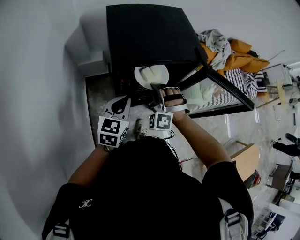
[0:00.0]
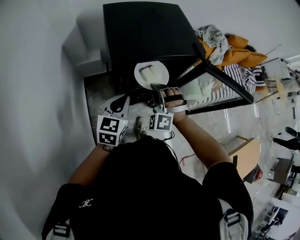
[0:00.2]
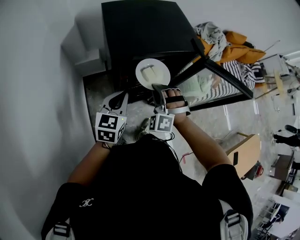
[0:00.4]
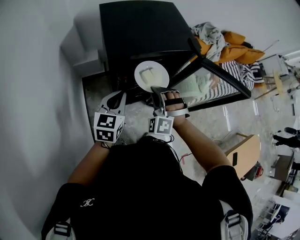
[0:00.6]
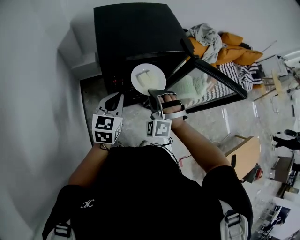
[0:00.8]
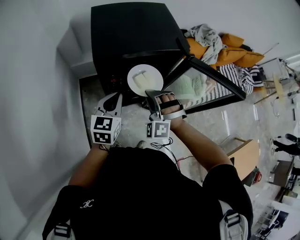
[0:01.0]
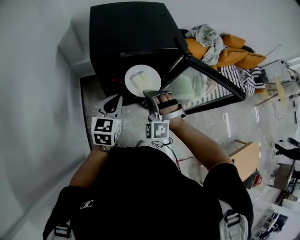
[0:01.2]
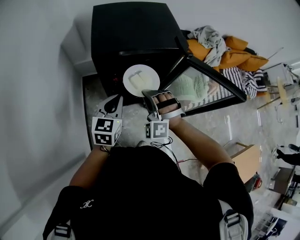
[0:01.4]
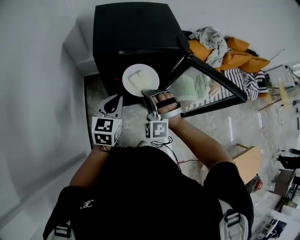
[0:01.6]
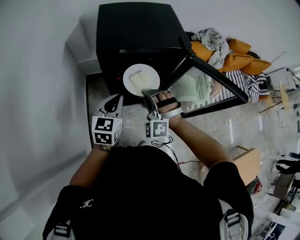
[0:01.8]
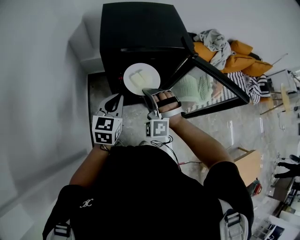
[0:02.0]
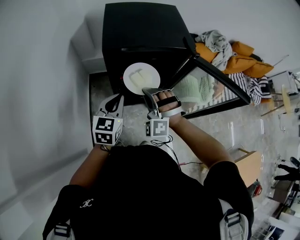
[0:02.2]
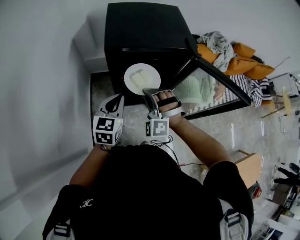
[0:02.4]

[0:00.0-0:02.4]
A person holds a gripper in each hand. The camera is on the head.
0:00.0 to 0:01.2: The right gripper is displaced backward and to the right by approximately 10 cm; the left gripper is displaced to the right by some 5 cm.
0:01.2 to 0:02.4: There are only small adjustments of the grippers.

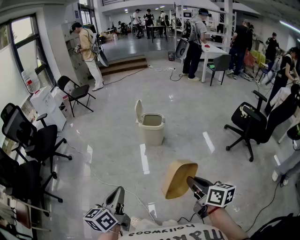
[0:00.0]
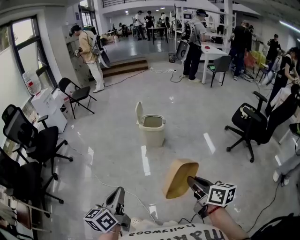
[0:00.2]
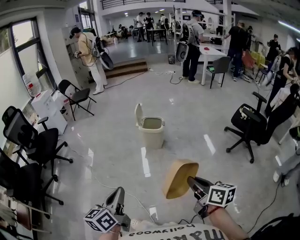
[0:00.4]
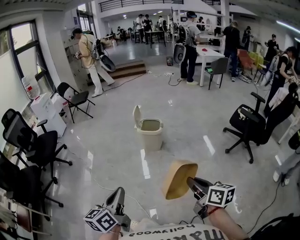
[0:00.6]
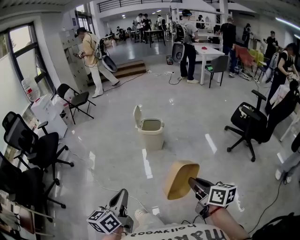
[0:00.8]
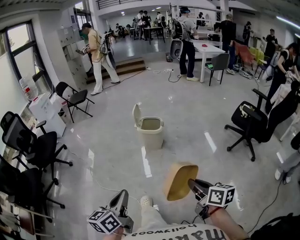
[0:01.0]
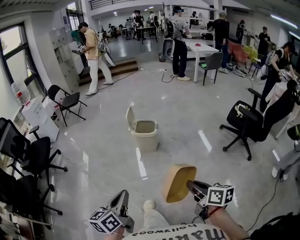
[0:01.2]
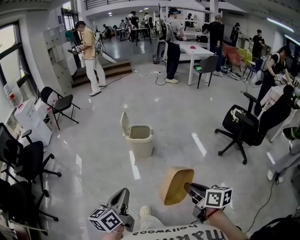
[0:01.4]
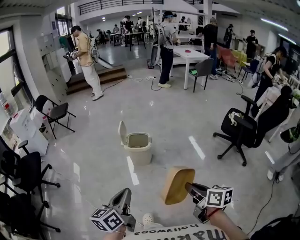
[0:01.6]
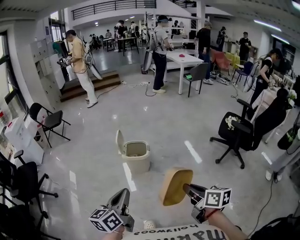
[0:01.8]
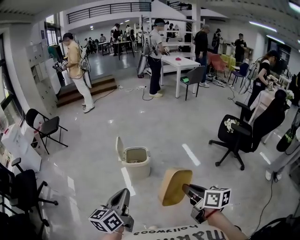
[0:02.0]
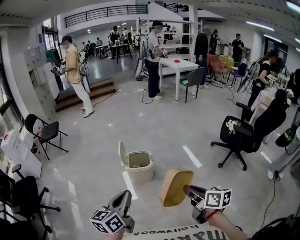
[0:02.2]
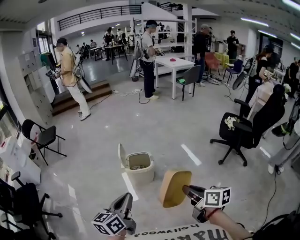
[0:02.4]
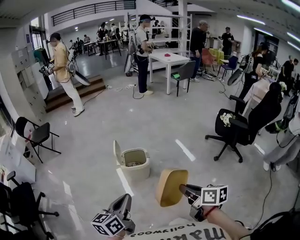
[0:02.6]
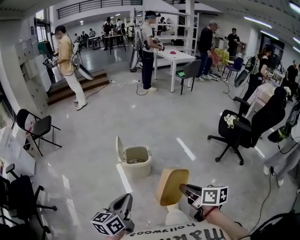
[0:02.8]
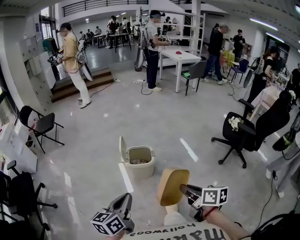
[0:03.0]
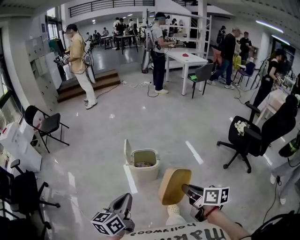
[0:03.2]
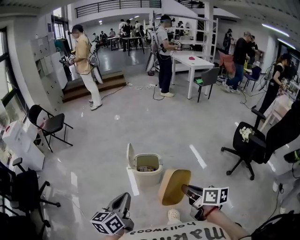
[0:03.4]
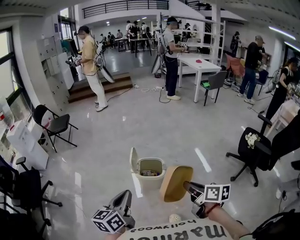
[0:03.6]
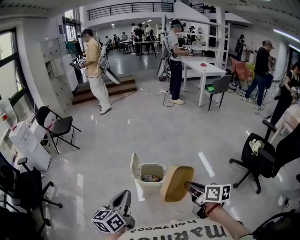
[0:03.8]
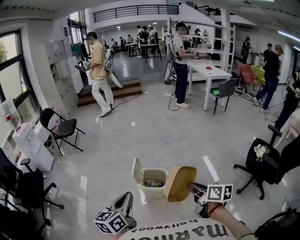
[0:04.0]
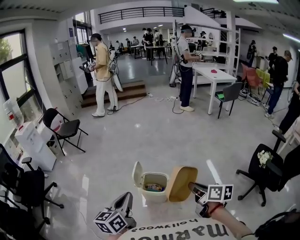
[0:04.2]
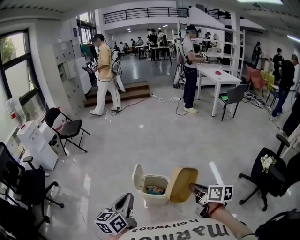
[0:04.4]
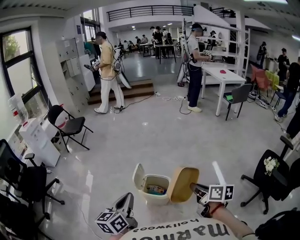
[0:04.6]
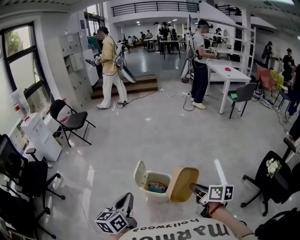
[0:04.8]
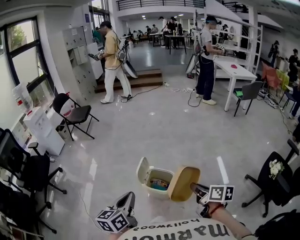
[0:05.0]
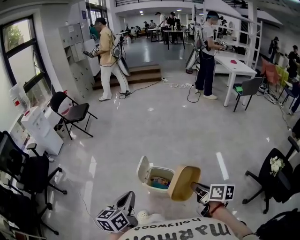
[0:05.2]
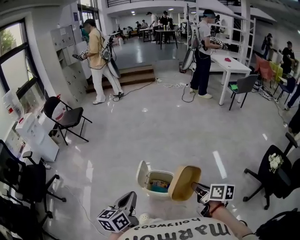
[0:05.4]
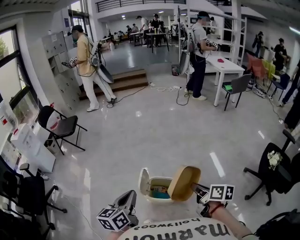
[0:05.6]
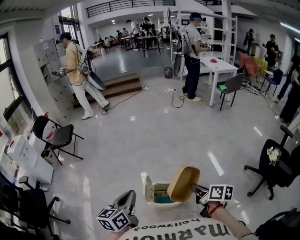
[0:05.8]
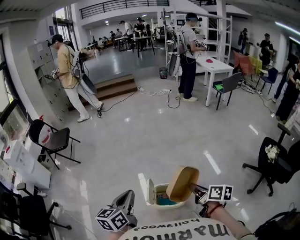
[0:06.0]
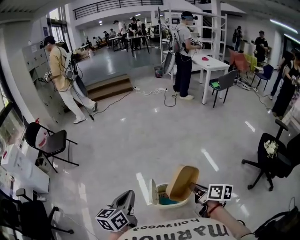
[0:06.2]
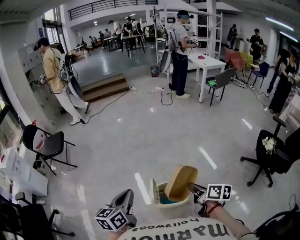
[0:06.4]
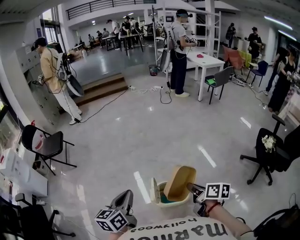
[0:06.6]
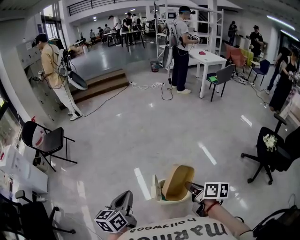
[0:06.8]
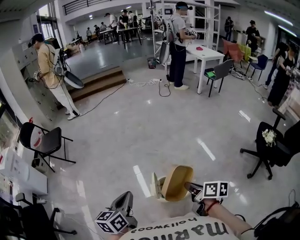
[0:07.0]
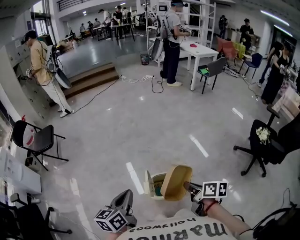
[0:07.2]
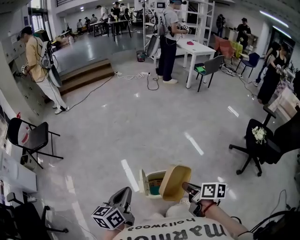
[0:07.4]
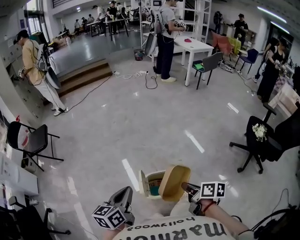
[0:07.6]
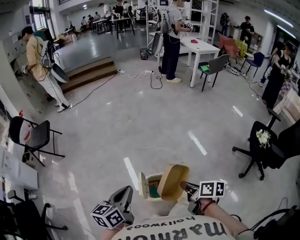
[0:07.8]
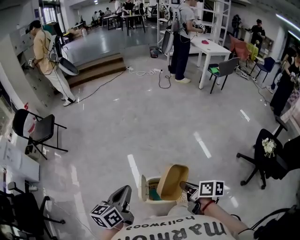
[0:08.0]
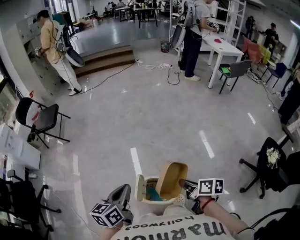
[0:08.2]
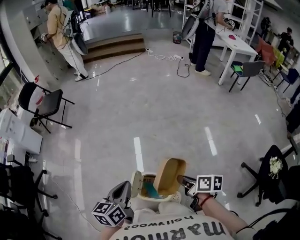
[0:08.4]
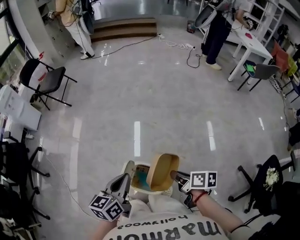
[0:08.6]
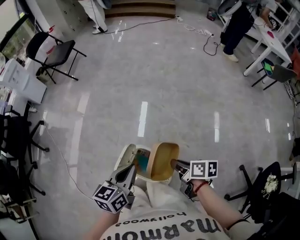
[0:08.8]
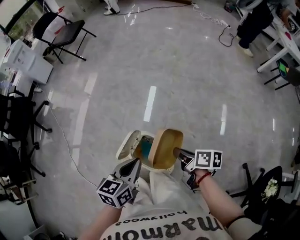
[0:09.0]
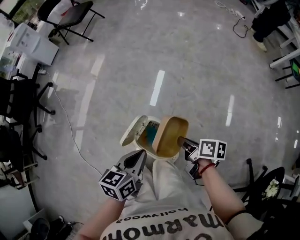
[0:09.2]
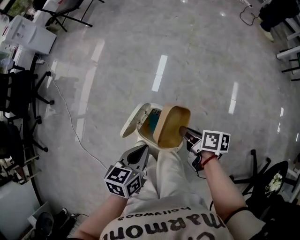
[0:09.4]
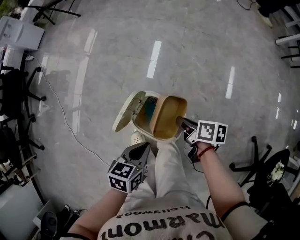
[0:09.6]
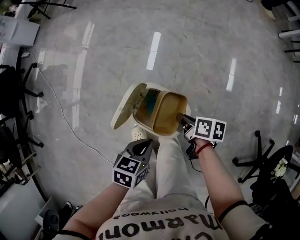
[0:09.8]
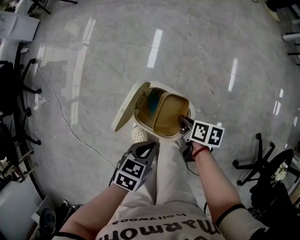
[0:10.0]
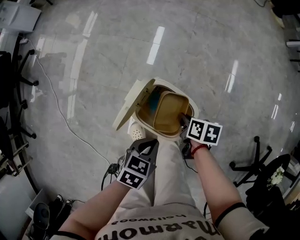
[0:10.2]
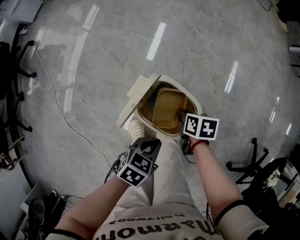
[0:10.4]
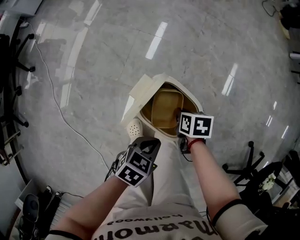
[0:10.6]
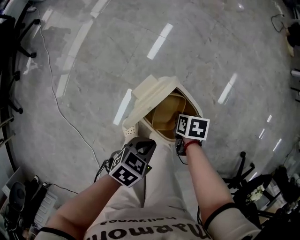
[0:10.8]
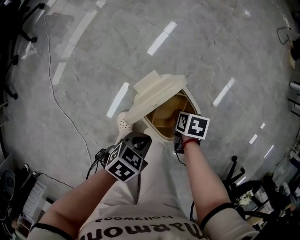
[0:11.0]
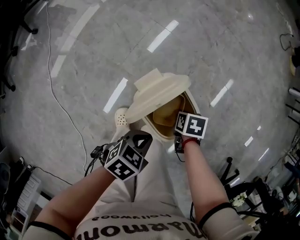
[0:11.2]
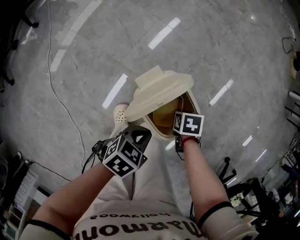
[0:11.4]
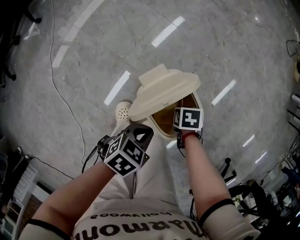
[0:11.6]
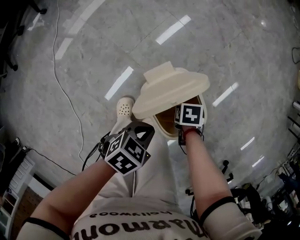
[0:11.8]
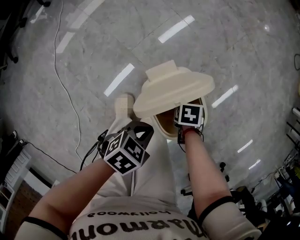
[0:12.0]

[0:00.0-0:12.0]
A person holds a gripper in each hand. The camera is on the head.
0:00.0 to 0:01.6: Both grippers move forward, some 15 cm.
0:01.6 to 0:03.0: The grippers both shift forward and to the left by roughly 20 cm.
0:03.0 to 0:04.4: The right gripper heads forward and to the right, covering about 30 cm; the left gripper travels forward by approximately 20 cm, and swivels about 20 degrees.
0:04.4 to 0:06.0: The left gripper heads forward, covering roughly 20 cm. Meanwhile the right gripper is displaced forward and to the left by about 20 cm.
0:06.0 to 0:07.6: The two grippers go some 5 cm downward. The left gripper goes to the left and returns, some 5 cm each way.
0:07.6 to 0:09.0: The right gripper shifts by some 25 cm, and rotates about 40 degrees; the left gripper shifts by some 20 cm, and rotates about 30 degrees.
0:09.0 to 0:10.4: Both grippers move downward, about 25 cm. The left gripper rotates approximately 40 degrees. The right gripper turns by about 30 degrees.
0:10.4 to 0:12.0: The right gripper is displaced downward by about 10 cm, and rotates approximately 40 degrees.

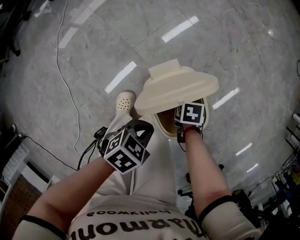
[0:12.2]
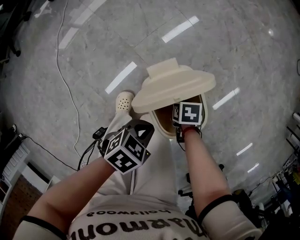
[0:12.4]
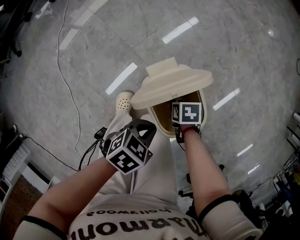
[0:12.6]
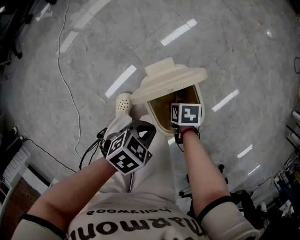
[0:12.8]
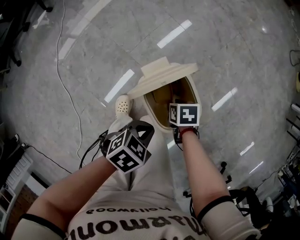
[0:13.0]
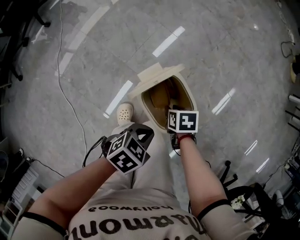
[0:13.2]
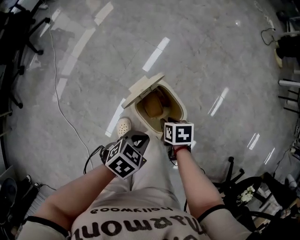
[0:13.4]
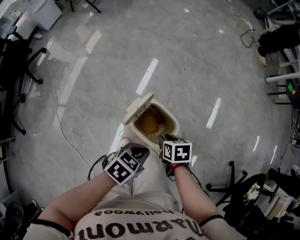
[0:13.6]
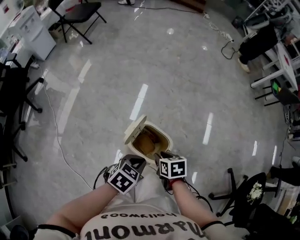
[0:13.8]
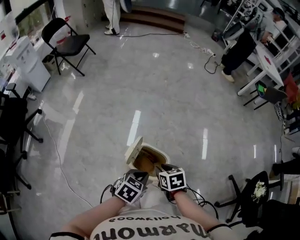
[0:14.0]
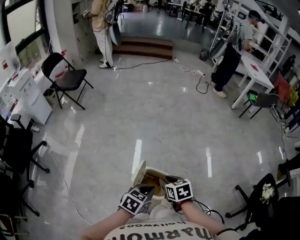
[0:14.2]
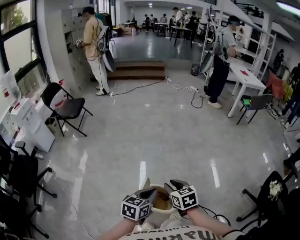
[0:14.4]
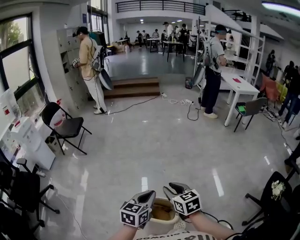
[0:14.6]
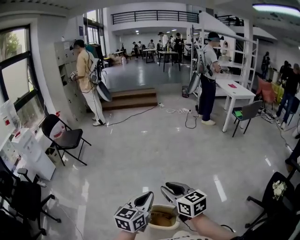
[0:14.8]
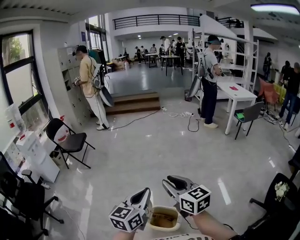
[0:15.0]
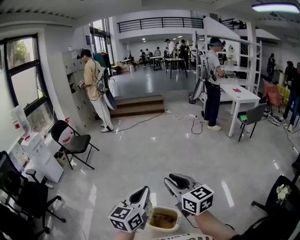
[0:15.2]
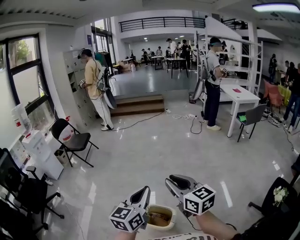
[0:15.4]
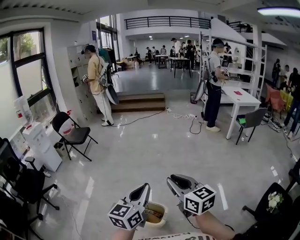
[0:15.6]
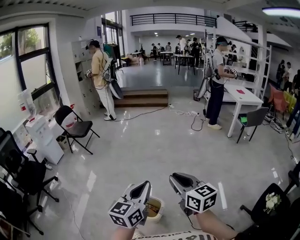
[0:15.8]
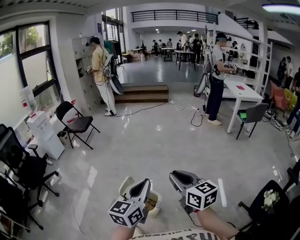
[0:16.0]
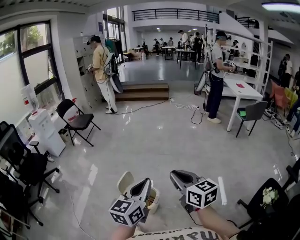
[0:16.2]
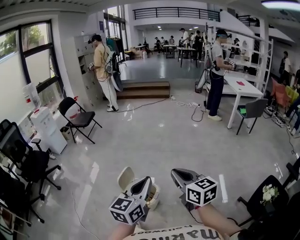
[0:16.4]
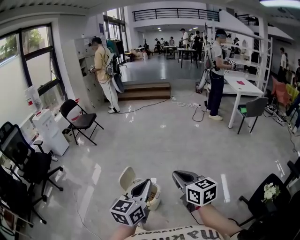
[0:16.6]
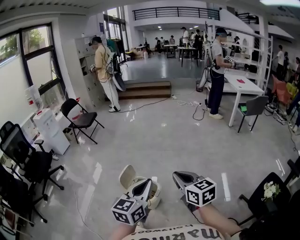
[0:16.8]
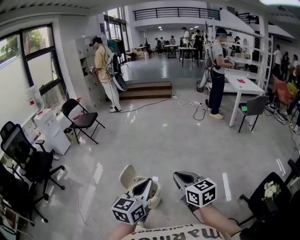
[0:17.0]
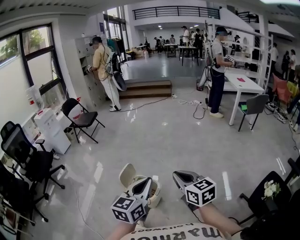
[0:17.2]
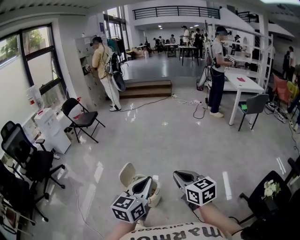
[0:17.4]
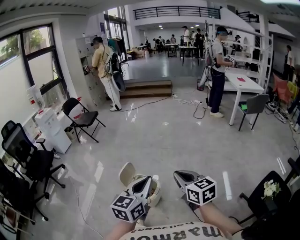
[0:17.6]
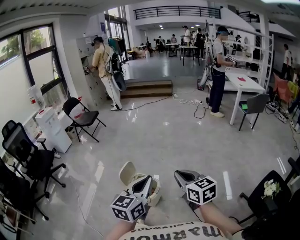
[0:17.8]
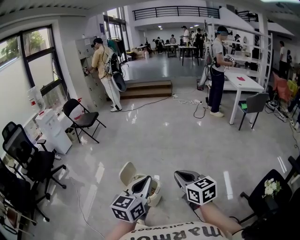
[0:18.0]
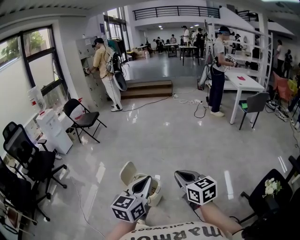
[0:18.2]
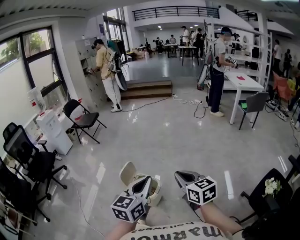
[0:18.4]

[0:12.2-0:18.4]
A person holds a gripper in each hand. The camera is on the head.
0:12.2 to 0:13.8: The grippers both shift upward by roughly 25 cm. The right gripper changes its angle by approximately 30 degrees, and opens up. Meanwhile the left gripper turns by some 30 degrees.
0:13.8 to 0:15.4: Both grippers move upward, approximately 40 cm. The right gripper points its fingers about 60 degrees further upward. Meanwhile the left gripper points its fingers some 50 degrees further upward.
0:15.4 to 0:16.8: The right gripper is displaced backward, to the right and downward by about 20 cm, while the left gripper heads backward and to the right, covering approximately 20 cm.
0:16.8 to 0:18.4: The grippers stay close to where they were, moving slightly.

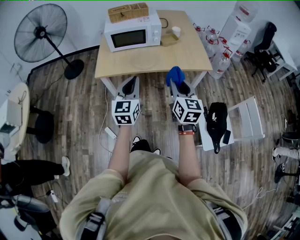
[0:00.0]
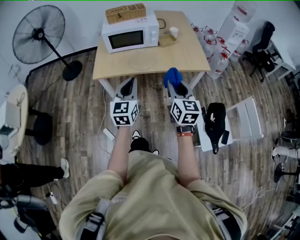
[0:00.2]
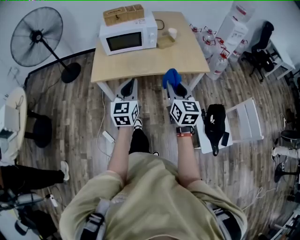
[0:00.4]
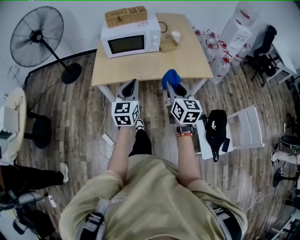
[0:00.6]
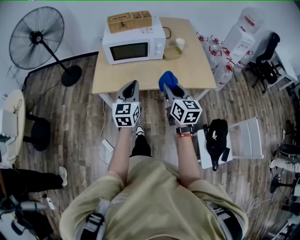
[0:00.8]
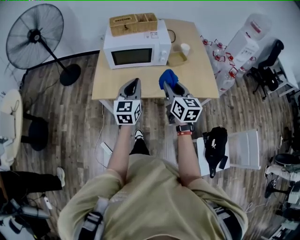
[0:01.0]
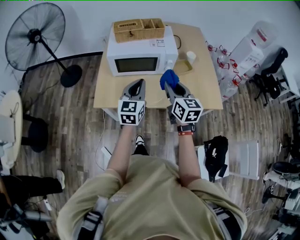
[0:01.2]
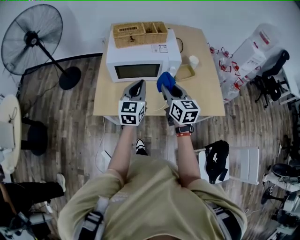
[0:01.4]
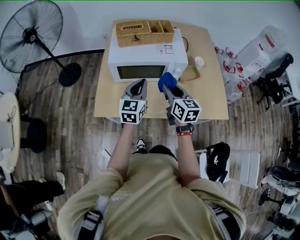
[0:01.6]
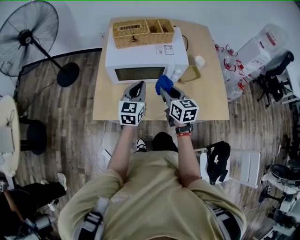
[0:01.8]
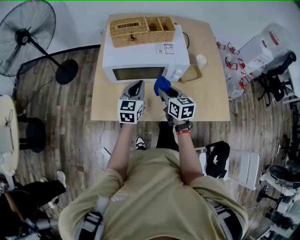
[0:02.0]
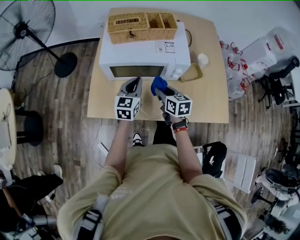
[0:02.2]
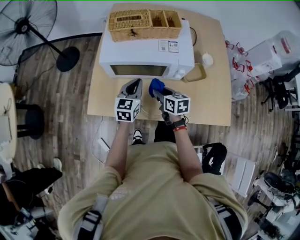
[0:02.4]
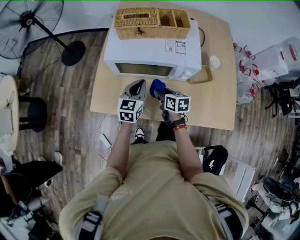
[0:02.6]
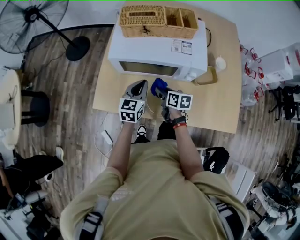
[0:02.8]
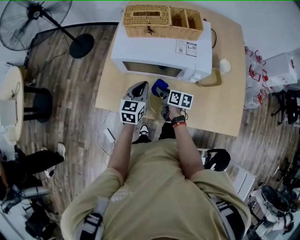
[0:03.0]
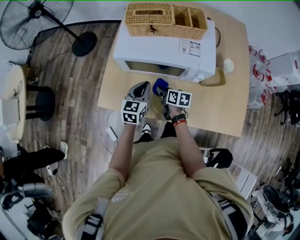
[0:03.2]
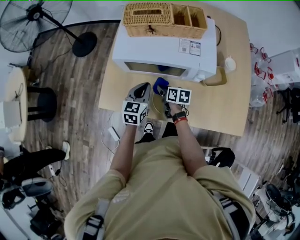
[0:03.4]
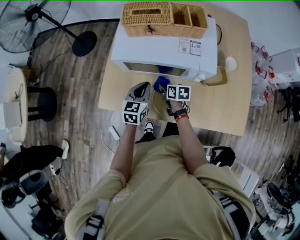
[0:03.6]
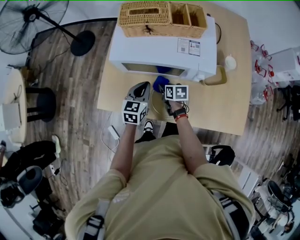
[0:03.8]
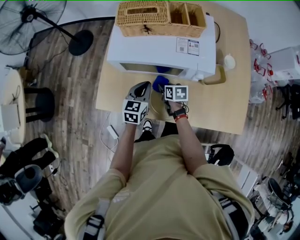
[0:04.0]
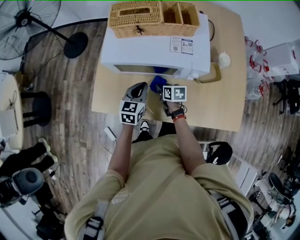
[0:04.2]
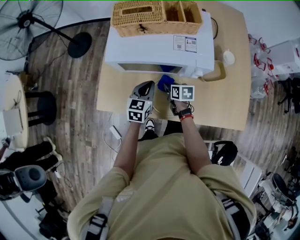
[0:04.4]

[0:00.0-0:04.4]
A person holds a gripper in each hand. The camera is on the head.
0:00.0 to 0:01.4: The grippers both shift forward by roughly 40 cm.
0:01.4 to 0:03.0: The right gripper shifts about 30 cm downward and forward, and swivels some 50 degrees. Meanwhile the left gripper heads downward and forward, covering some 20 cm.
0:03.0 to 0:04.4: The left gripper changes place by about 5 cm. The right gripper changes place by approximately 5 cm.
